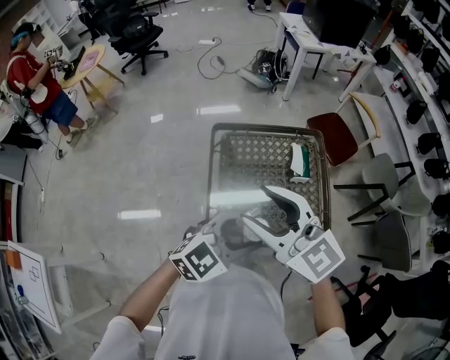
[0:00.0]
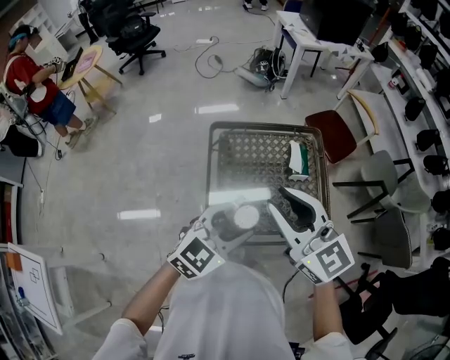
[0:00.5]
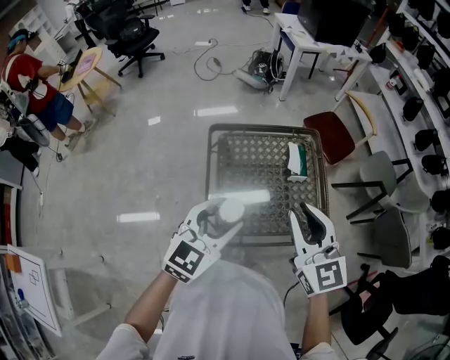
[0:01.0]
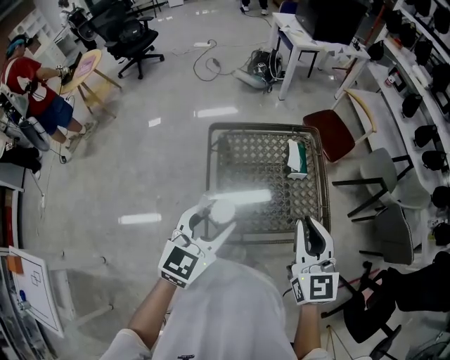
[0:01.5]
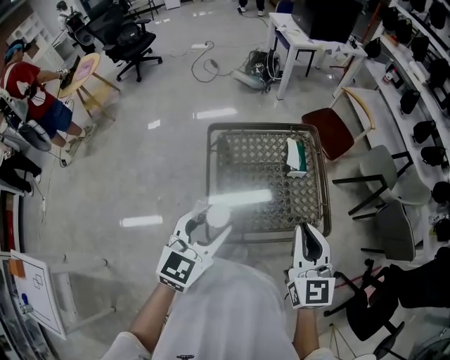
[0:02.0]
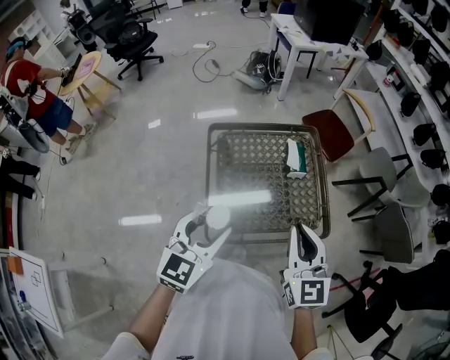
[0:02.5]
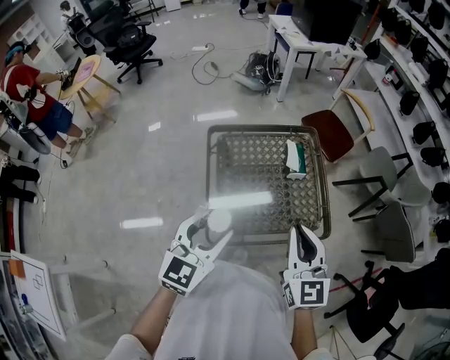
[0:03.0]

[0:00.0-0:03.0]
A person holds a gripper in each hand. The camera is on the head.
0:00.0 to 0:01.5: The right gripper is displaced to the right by about 15 cm, rotates about 40 degrees, and closes up. The left gripper travels to the left by some 10 cm, and turns by approximately 30 degrees.
0:01.5 to 0:03.0: There are only small adjustments of the grippers.

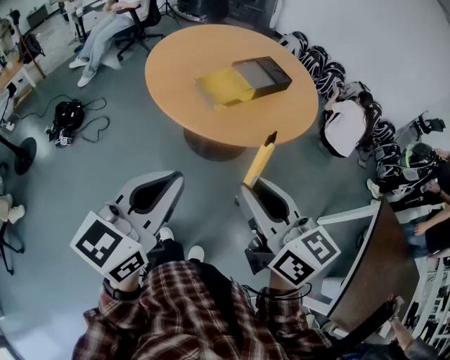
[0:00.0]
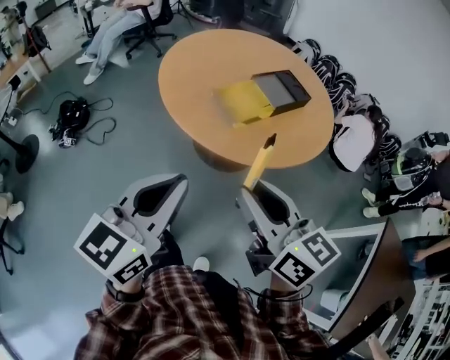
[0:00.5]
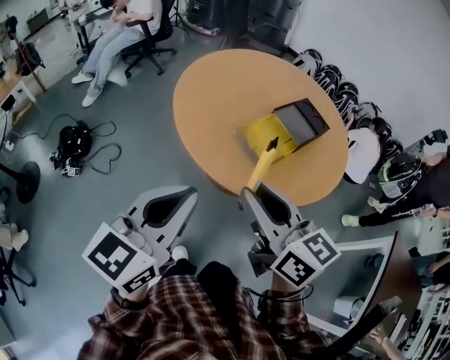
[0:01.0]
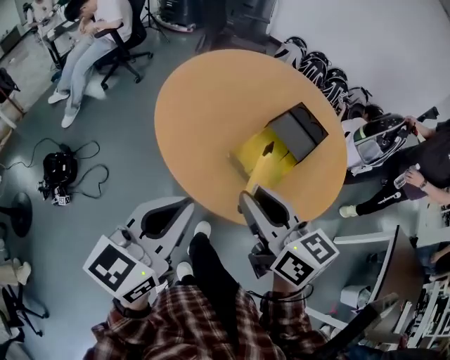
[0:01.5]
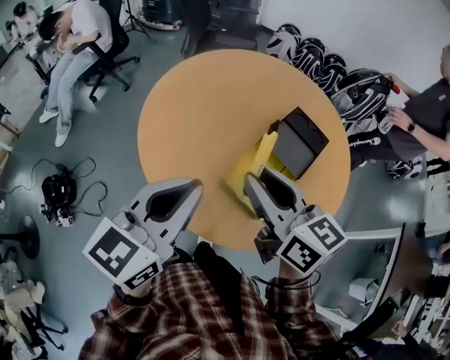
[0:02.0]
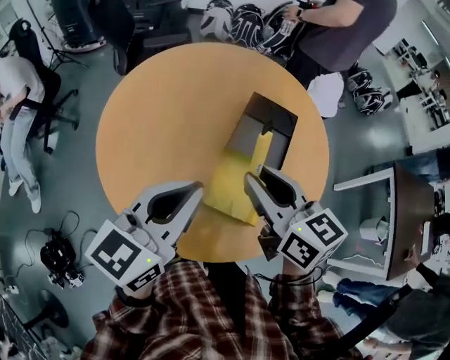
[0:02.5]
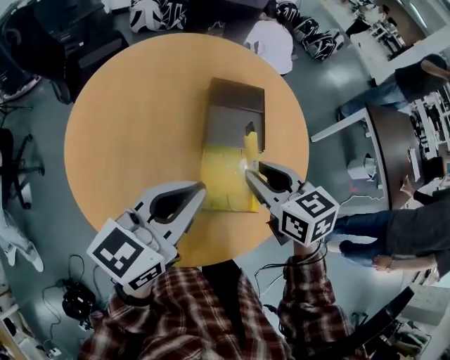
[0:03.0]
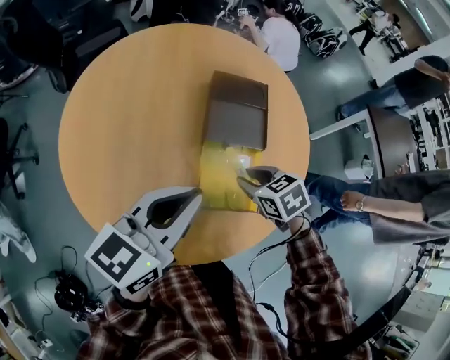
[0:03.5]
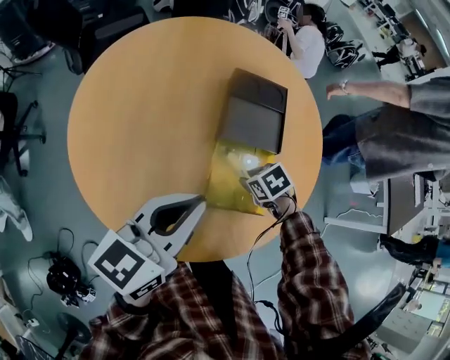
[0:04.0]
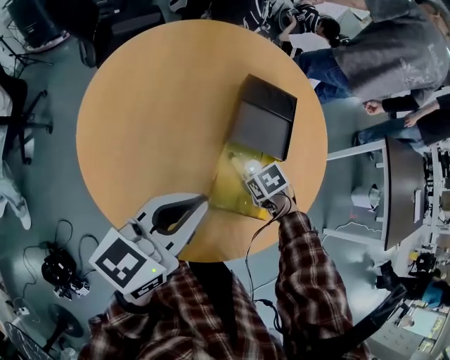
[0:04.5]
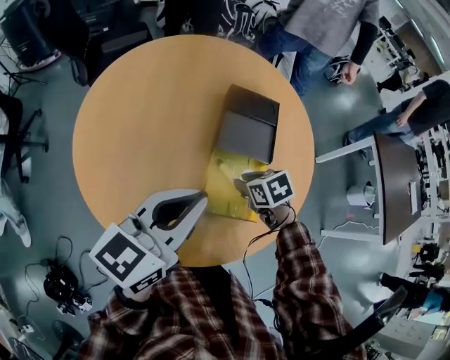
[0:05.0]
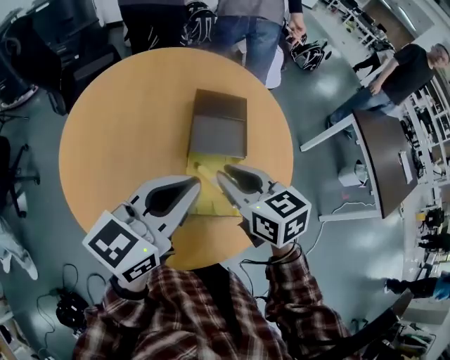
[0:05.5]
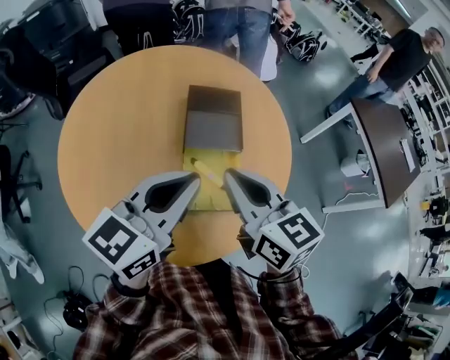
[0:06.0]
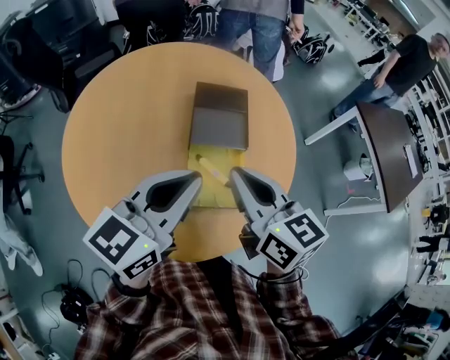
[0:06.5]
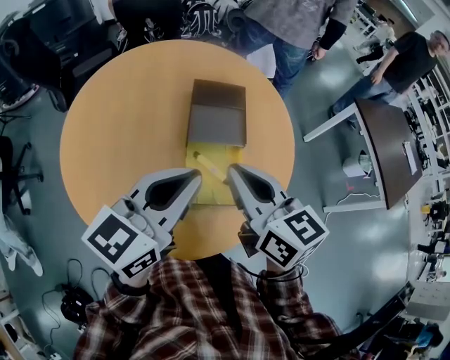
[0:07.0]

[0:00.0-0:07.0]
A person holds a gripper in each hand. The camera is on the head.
0:00.0 to 0:02.0: The pair of grippers is taken forward, some 50 cm.
0:02.0 to 0:03.5: The right gripper moves downward, approximately 20 cm, and tips its fingers downward by approximately 50 degrees. The left gripper ends up roughly 20 cm from where it was, and rotates about 50 degrees.
0:05.0 to 0:07.0: The right gripper goes about 25 cm upward, angles its fingers upward, by about 50 degrees, and closes up. The left gripper heads to the right, covering approximately 5 cm.

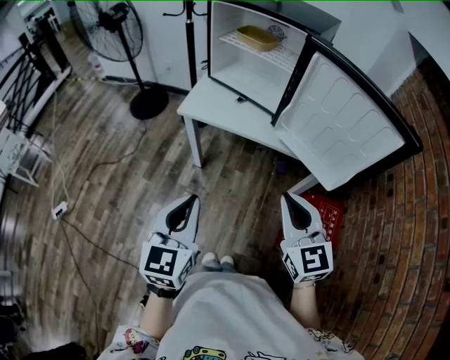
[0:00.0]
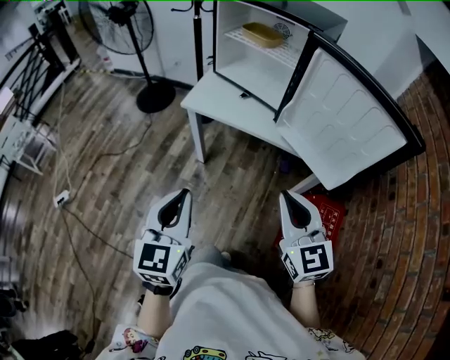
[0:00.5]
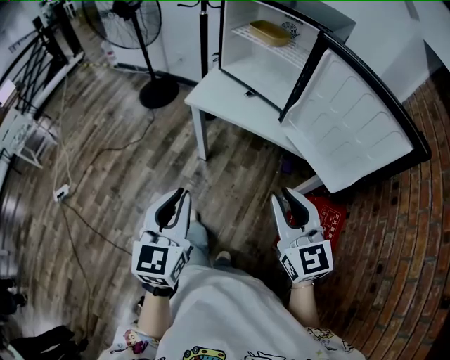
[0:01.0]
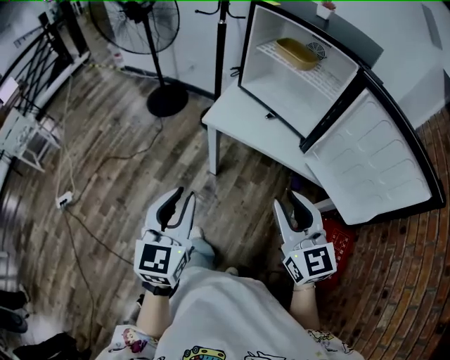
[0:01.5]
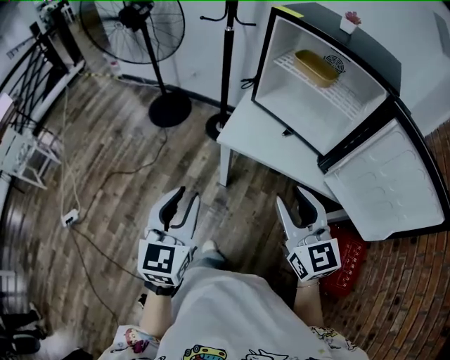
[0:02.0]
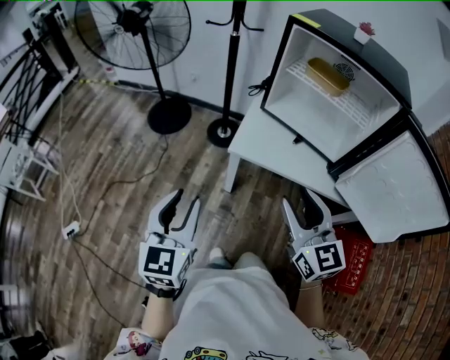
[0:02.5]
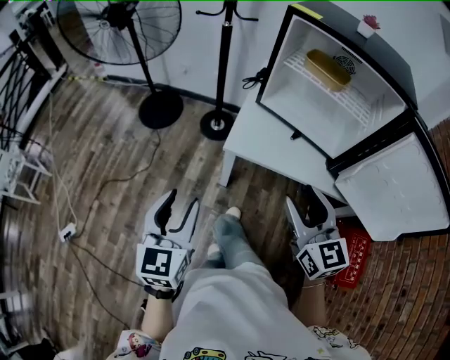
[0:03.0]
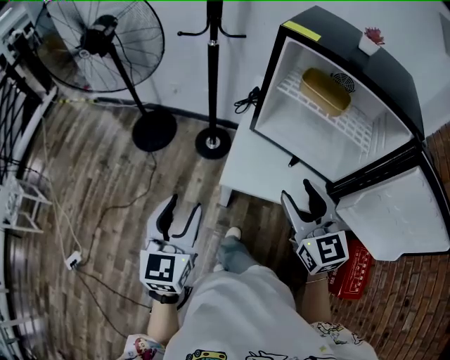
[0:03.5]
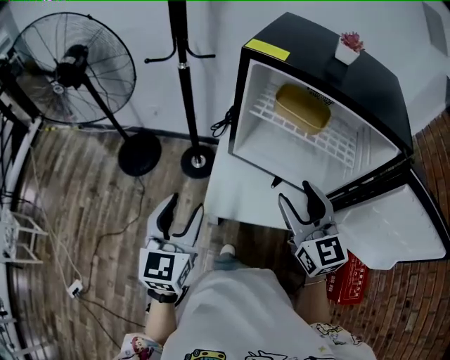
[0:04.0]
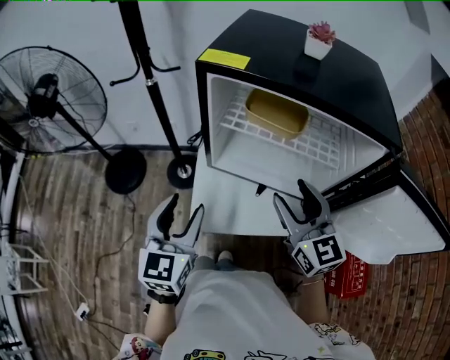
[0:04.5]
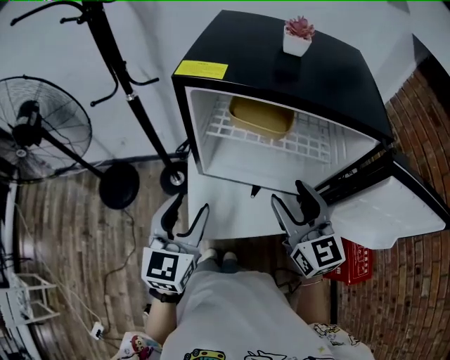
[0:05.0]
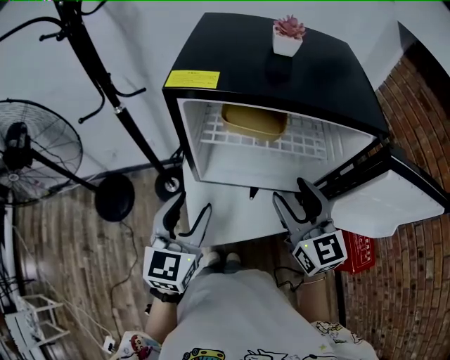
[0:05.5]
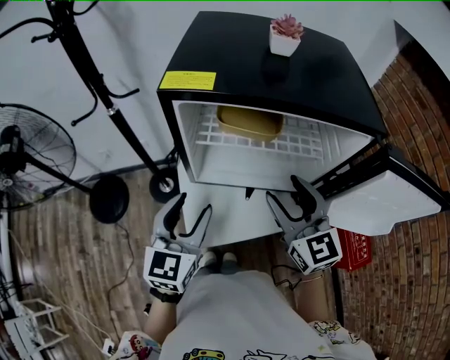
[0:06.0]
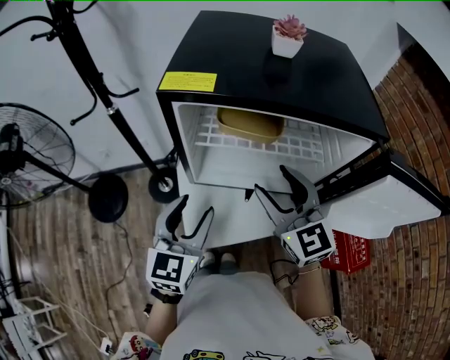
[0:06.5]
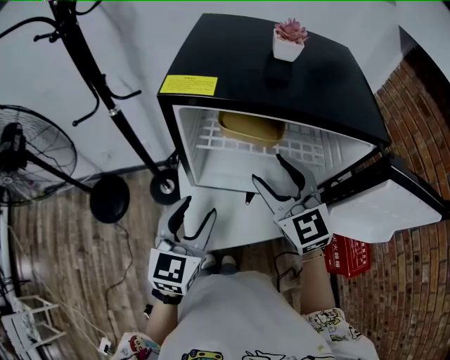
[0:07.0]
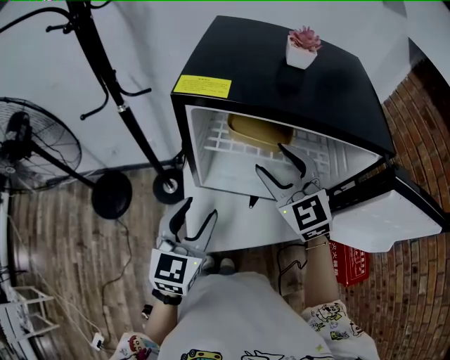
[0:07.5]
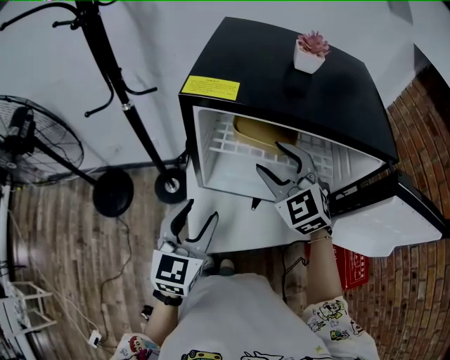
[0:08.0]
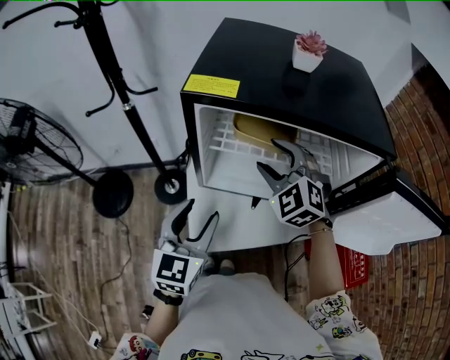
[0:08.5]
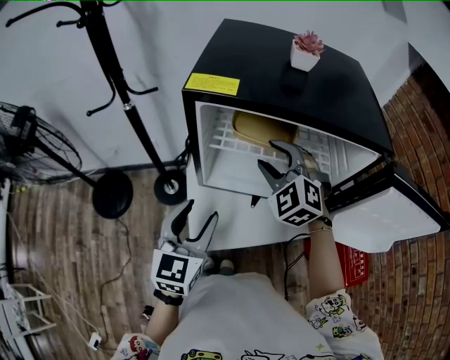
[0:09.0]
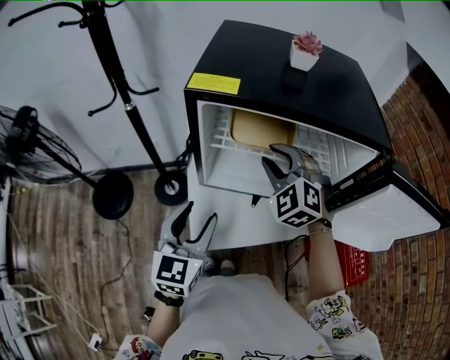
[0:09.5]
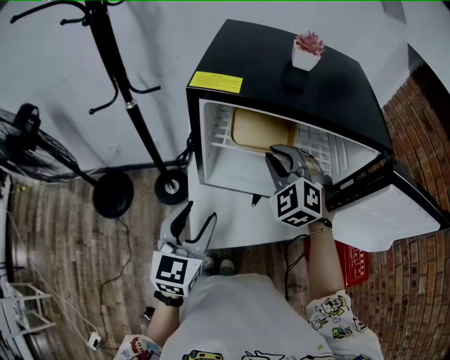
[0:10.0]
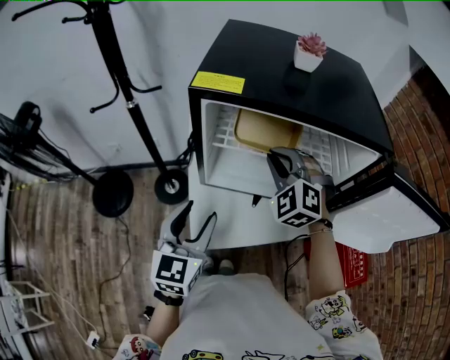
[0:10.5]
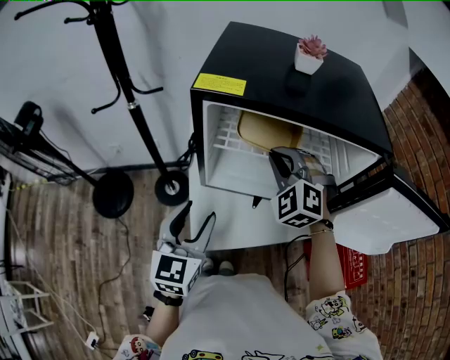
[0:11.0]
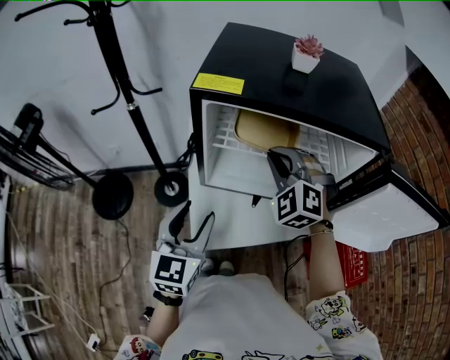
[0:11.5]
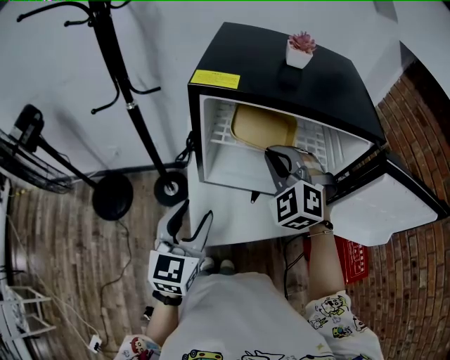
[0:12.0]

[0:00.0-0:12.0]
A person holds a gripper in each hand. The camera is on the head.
0:00.0 to 0:02.0: The two grippers go approximately 25 cm forward and to the left. The right gripper opens. The left gripper opens.
0:02.0 to 0:04.0: The grippers both shift forward by about 25 cm. The right gripper opens its fingers, while the left gripper opens up.
0:04.0 to 0:06.0: The left gripper heads forward and to the right, covering roughly 15 cm, and swivels some 30 degrees, while the right gripper heads forward, covering roughly 5 cm.
0:06.0 to 0:08.0: The right gripper heads forward, covering about 10 cm, and changes its angle by about 30 degrees.
0:08.0 to 0:10.0: The right gripper turns by roughly 20 degrees, and closes up.
0:10.0 to 0:12.0: The grippers move only a little.

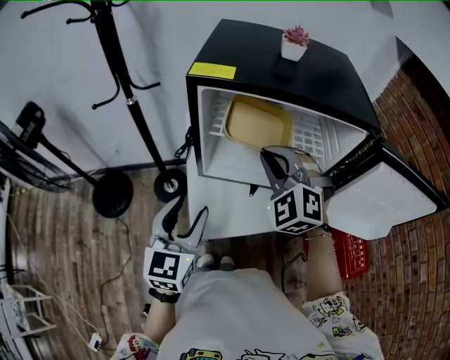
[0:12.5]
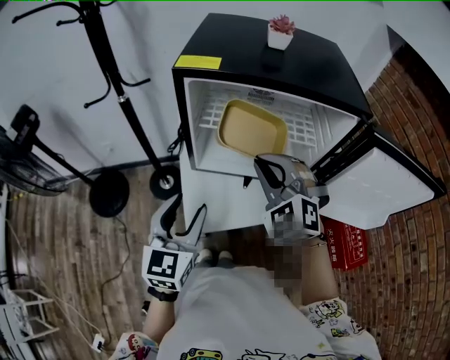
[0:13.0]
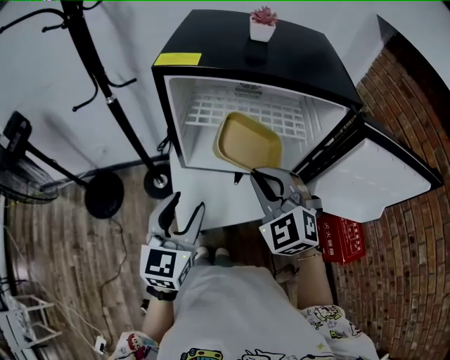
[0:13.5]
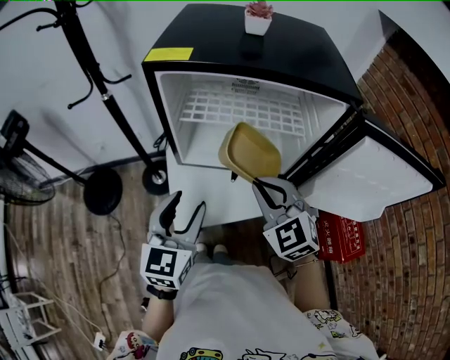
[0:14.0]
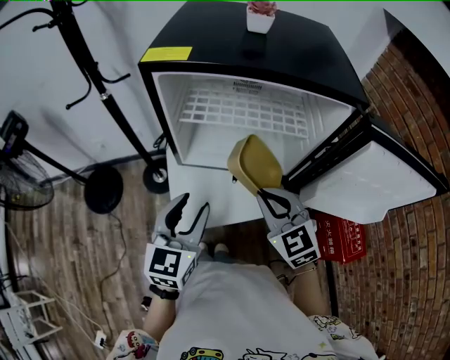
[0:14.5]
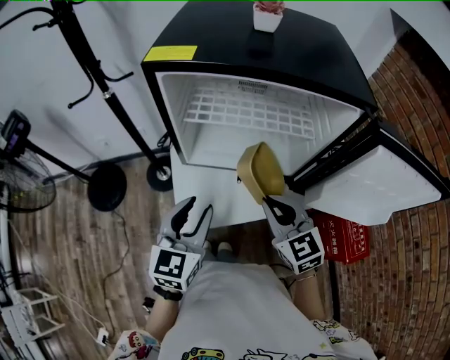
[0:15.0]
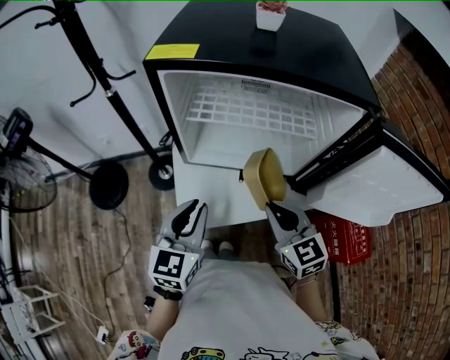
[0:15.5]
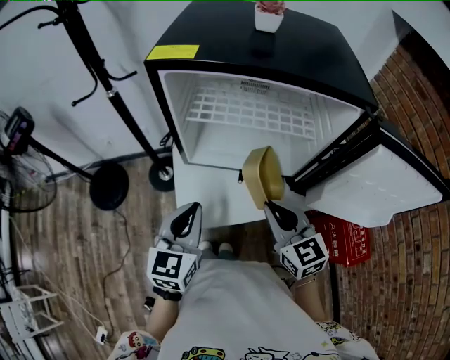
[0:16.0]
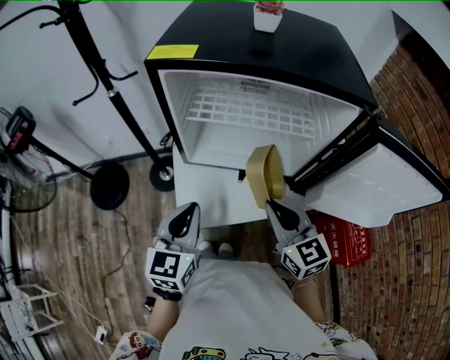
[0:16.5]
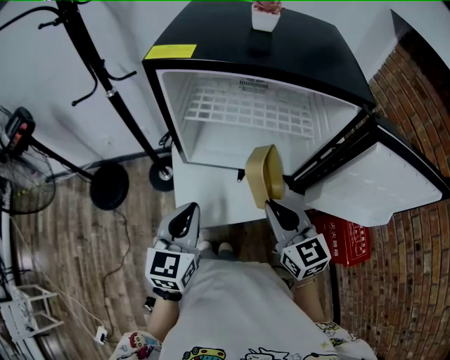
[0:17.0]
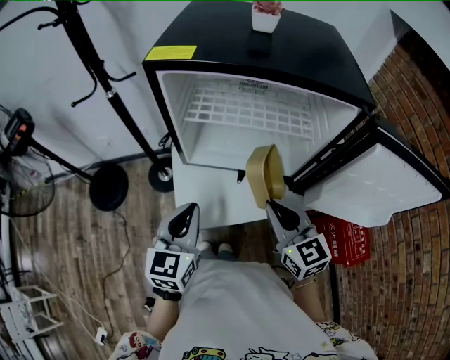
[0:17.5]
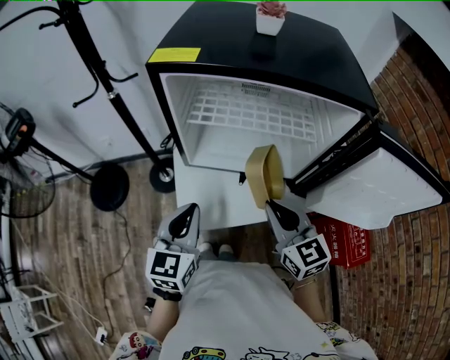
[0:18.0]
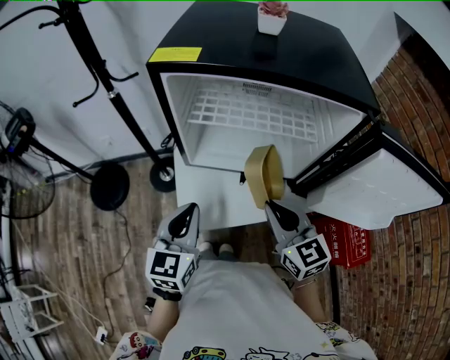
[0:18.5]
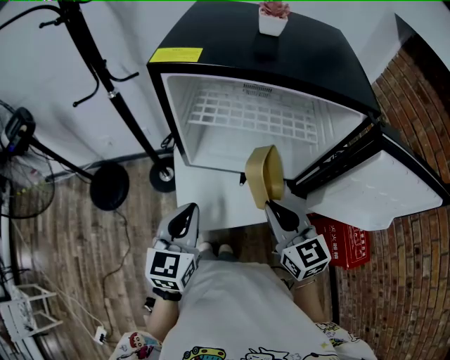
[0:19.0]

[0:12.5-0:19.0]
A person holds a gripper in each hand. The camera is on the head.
0:12.5 to 0:14.5: The right gripper travels downward, backward and to the right by approximately 15 cm, and rotates some 40 degrees, while the left gripper goes roughly 5 cm to the right.
0:14.5 to 0:17.0: The left gripper closes its fingers, while the right gripper changes its angle by about 20 degrees.
0:17.0 to 0:19.0: Both grippers stay about where they are.
